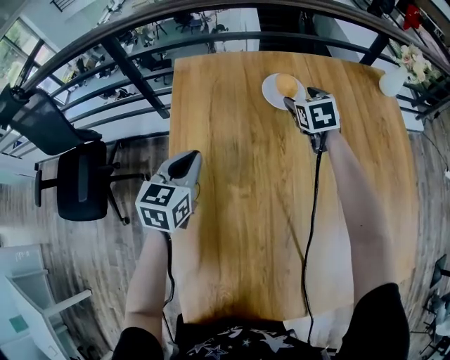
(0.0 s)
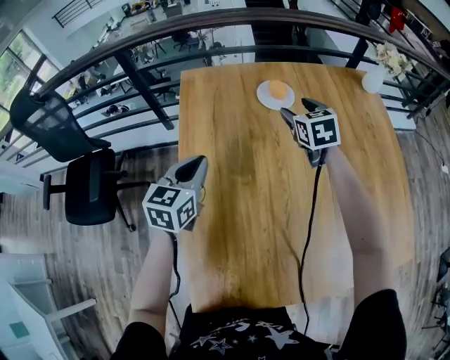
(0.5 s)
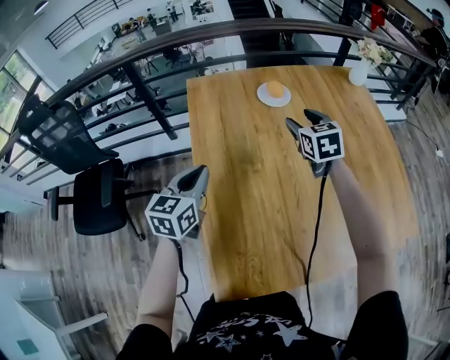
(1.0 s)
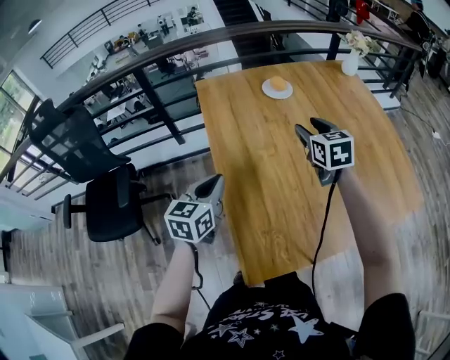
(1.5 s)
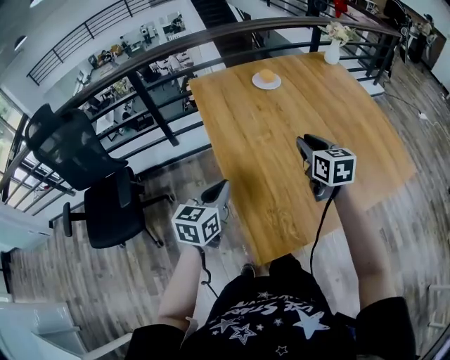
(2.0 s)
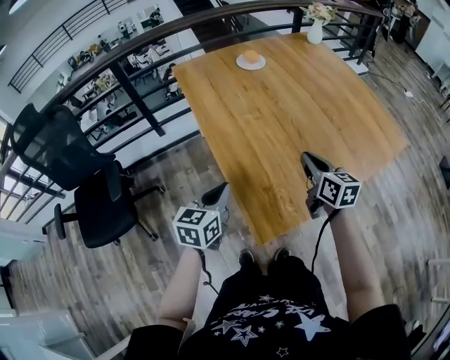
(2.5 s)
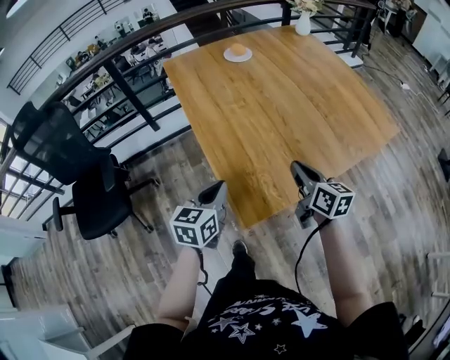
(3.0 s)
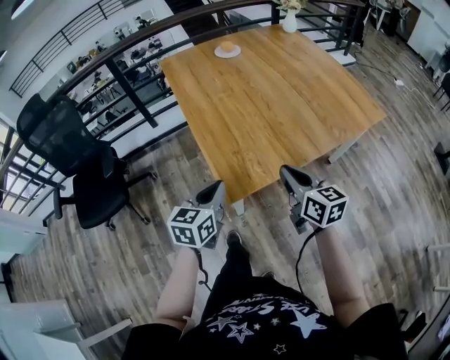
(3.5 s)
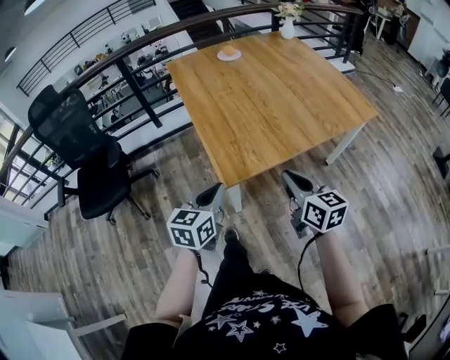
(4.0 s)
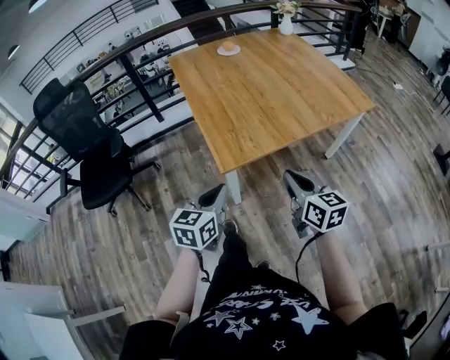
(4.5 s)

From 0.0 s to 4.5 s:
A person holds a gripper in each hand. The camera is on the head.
From 0.0 s to 2.0 s: The two grippers go about 40 cm backward. The right gripper rotates roughly 30 degrees, and closes up.
From 2.0 s to 4.5 s: Both grippers travel together backward and to the right, about 40 cm.

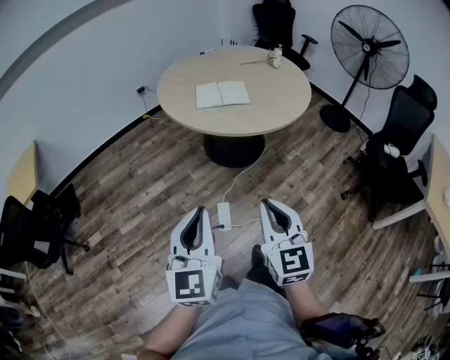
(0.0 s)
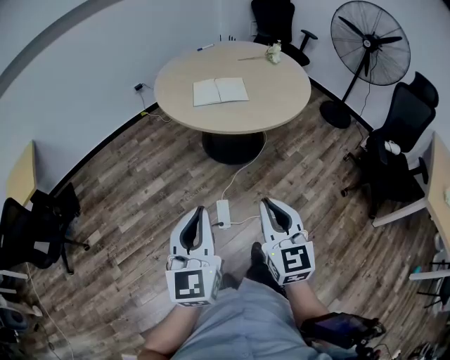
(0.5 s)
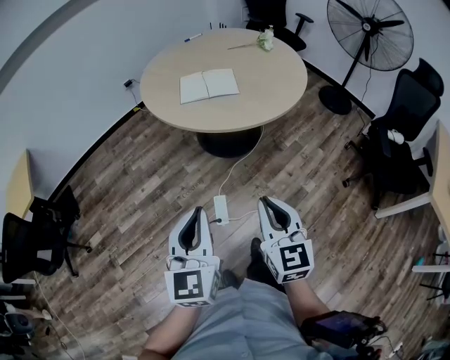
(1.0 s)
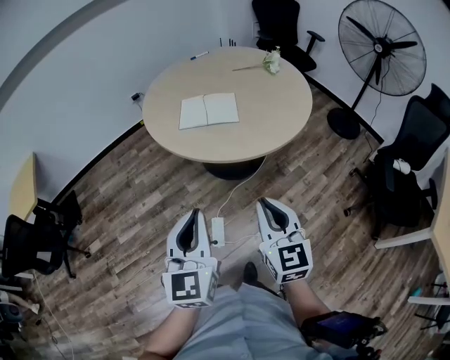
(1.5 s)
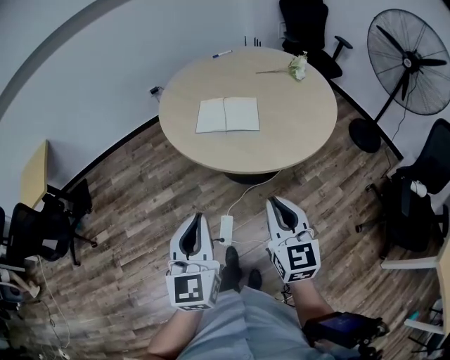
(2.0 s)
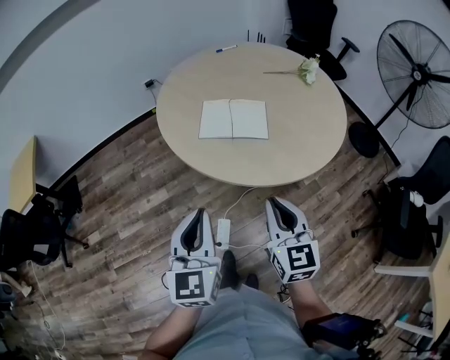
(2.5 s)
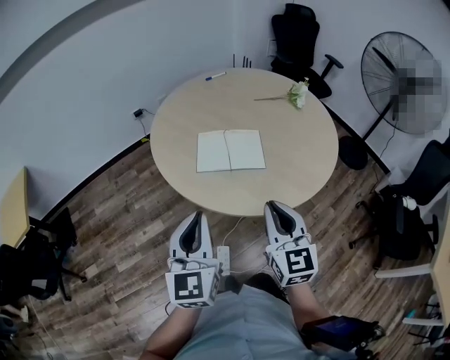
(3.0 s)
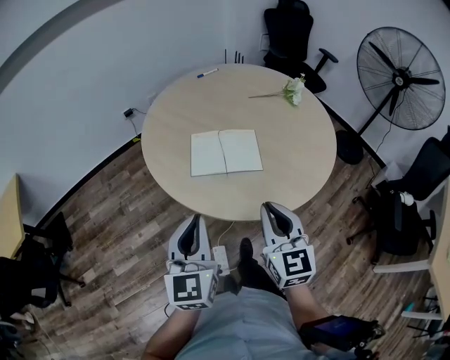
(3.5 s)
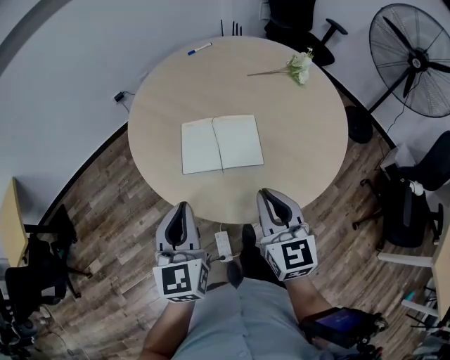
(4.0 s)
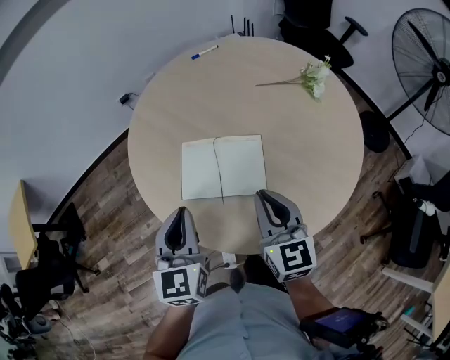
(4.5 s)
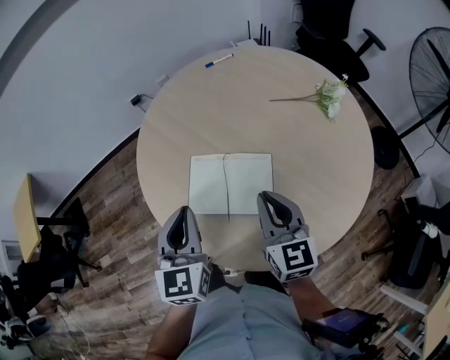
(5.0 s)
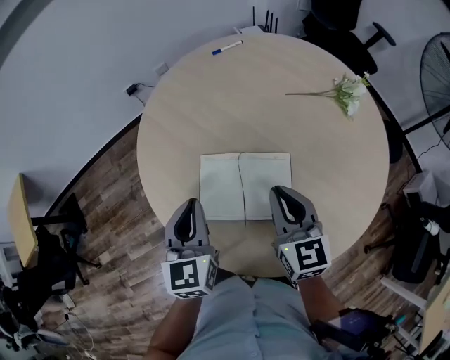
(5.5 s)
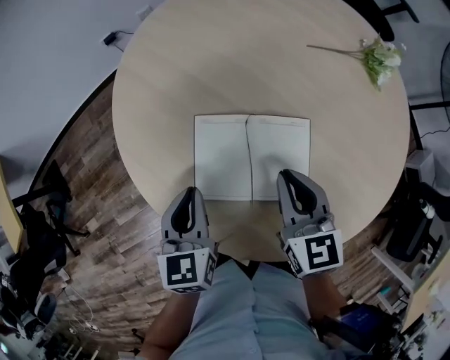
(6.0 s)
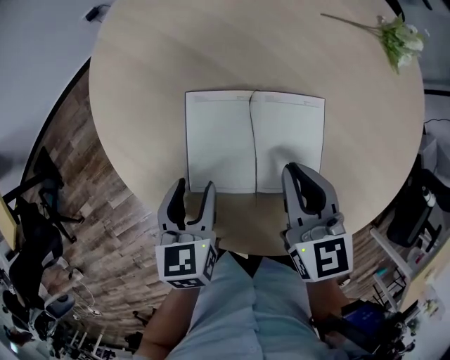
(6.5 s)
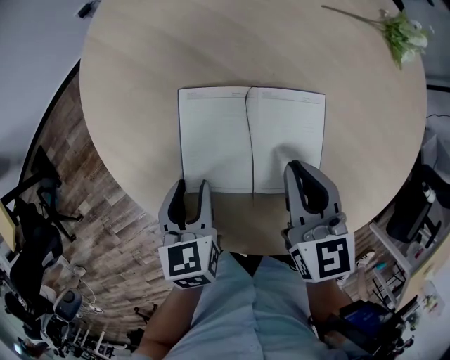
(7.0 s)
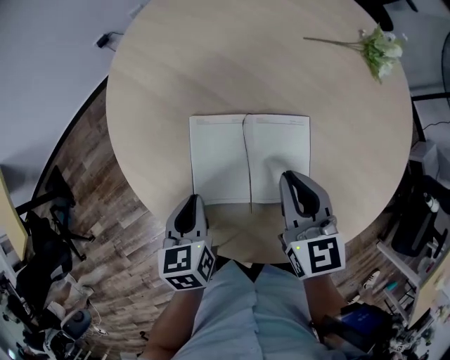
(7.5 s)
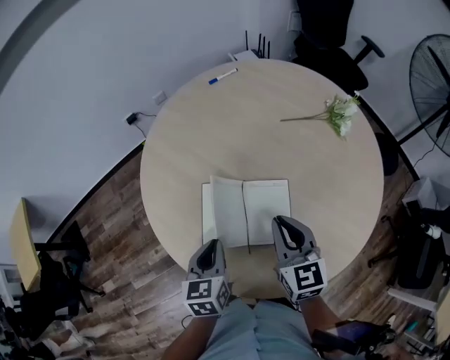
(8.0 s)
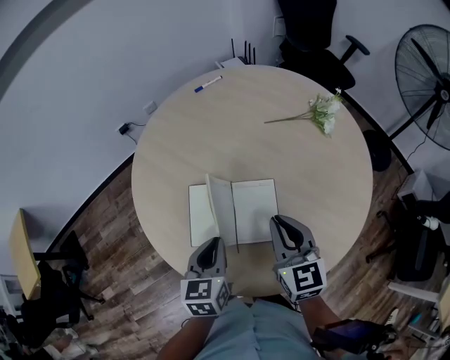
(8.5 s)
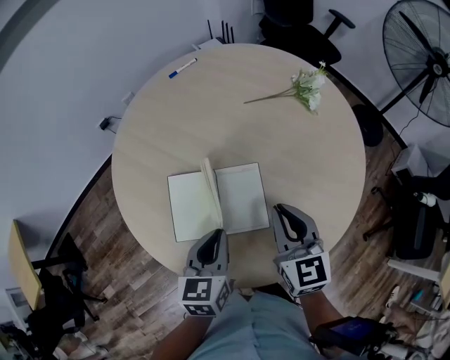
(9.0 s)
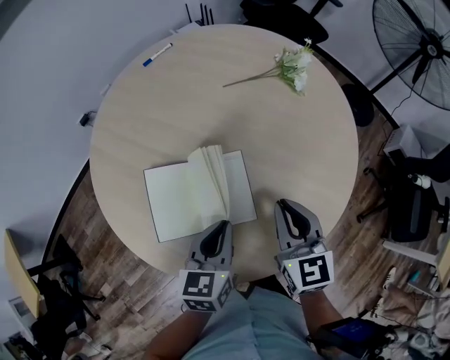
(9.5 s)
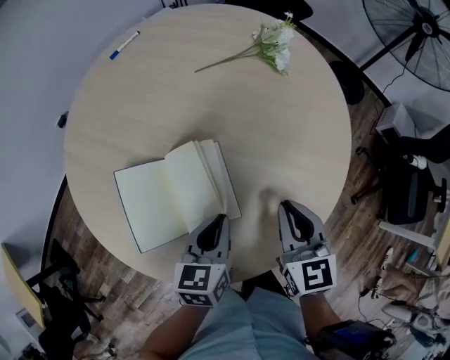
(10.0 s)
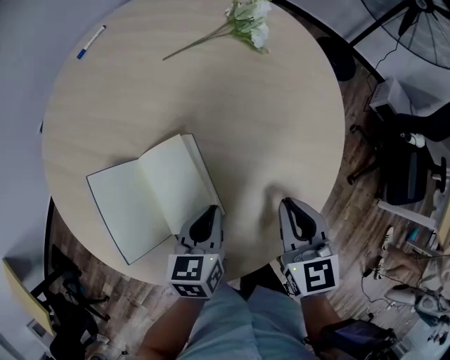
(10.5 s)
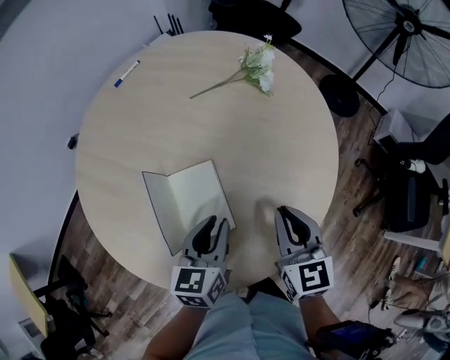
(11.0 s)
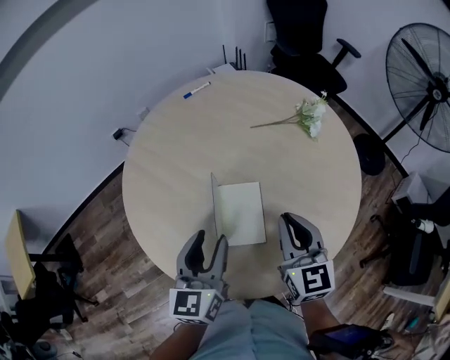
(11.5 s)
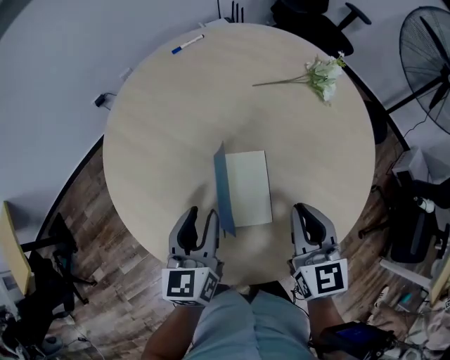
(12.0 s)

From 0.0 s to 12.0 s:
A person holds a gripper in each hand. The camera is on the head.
From 0.0 s to 2.0 s: The grippers both shift forward and to the right by approximately 25 cm.
From 2.0 s to 4.0 s: The two grippers go roughly 30 cm forward.
From 4.0 s to 6.0 s: Both grippers travel together forward and downward, some 30 cm. The left gripper rotates roughly 20 degrees.
From 6.0 s to 8.0 s: The left gripper heads to the right, covering some 5 cm, travels downward and back again, about 10 cm each way, and opens, then closes again. Meanwhile the right gripper heads upward, covering some 5 cm.
From 8.0 s to 10.0 s: The grippers both shift to the right by some 20 cm. The right gripper rotates about 20 degrees. Meanwhile the left gripper changes its angle by some 30 degrees.
From 10.0 s to 12.0 s: The left gripper moves up and down over some 20 cm, changing direction 2 times, rotates roughly 30 degrees, and opens. Meanwhile the right gripper goes about 10 cm to the left and upward.

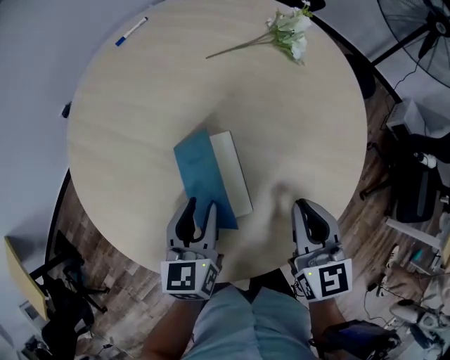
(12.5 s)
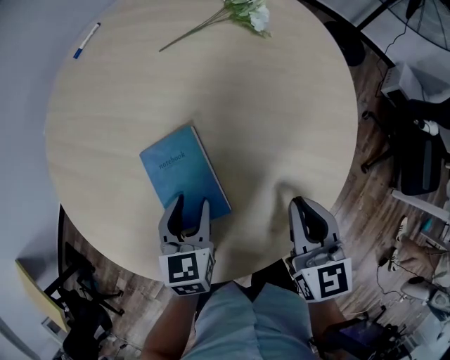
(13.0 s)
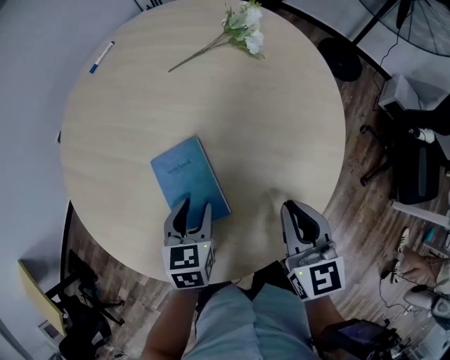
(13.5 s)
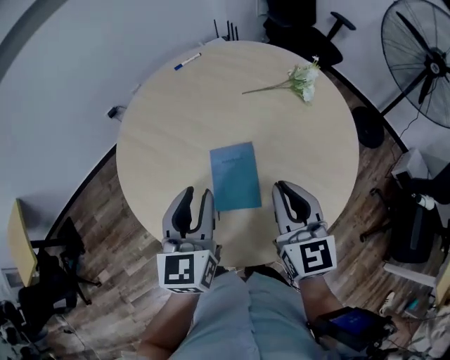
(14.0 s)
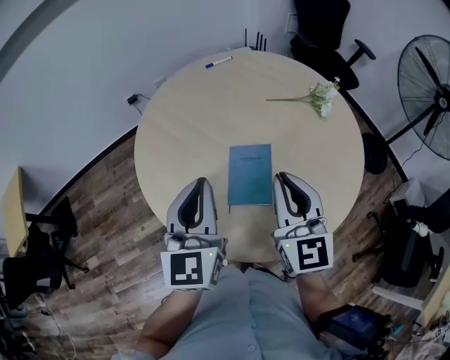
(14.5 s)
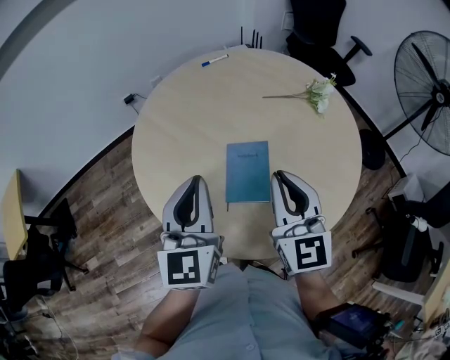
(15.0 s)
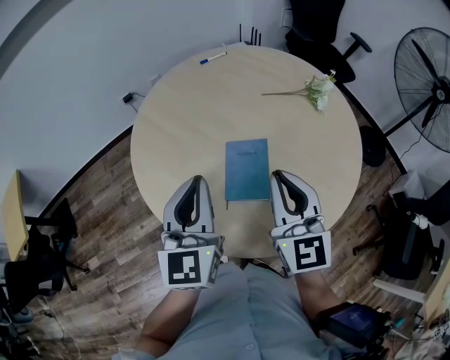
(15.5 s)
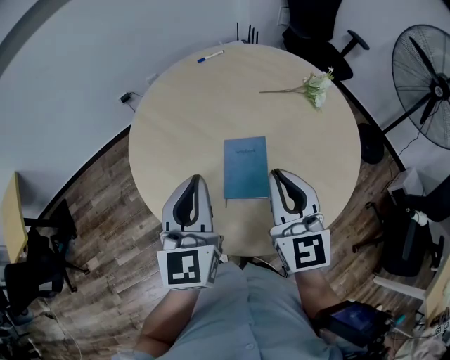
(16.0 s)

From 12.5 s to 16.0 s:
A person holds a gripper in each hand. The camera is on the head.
From 12.5 s to 14.5 s: The right gripper travels upward and to the left by some 20 cm, and rotates roughly 30 degrees; the left gripper moves upward and backward, some 25 cm, rotates approximately 30 degrees, and closes.
From 14.5 s to 16.0 s: The two grippers keep their place.

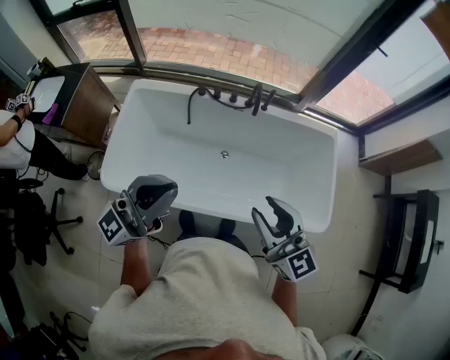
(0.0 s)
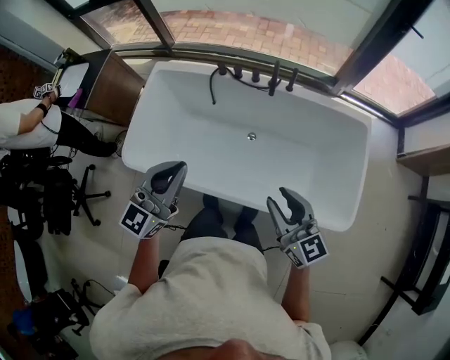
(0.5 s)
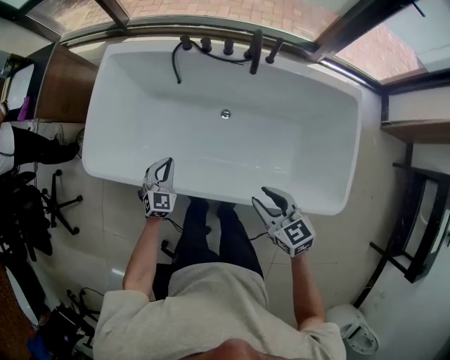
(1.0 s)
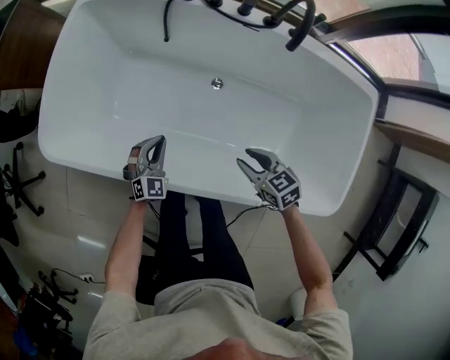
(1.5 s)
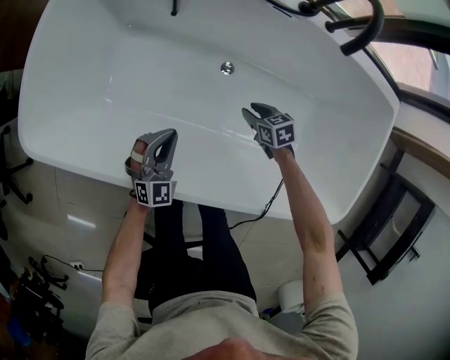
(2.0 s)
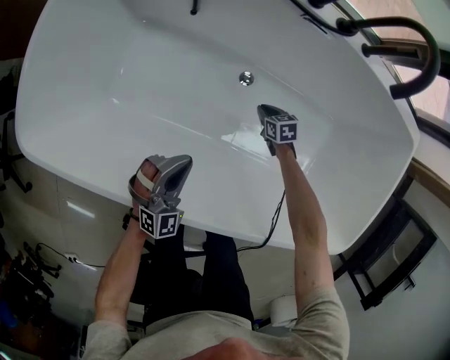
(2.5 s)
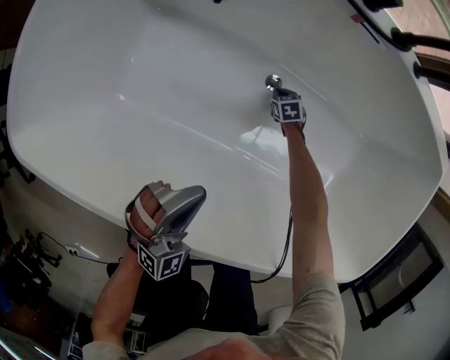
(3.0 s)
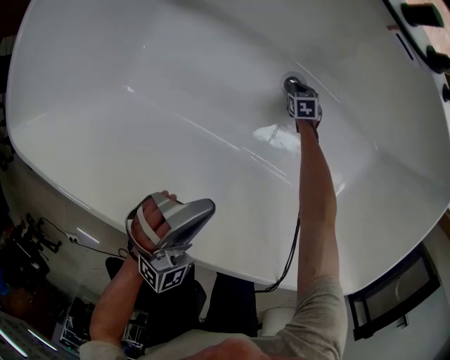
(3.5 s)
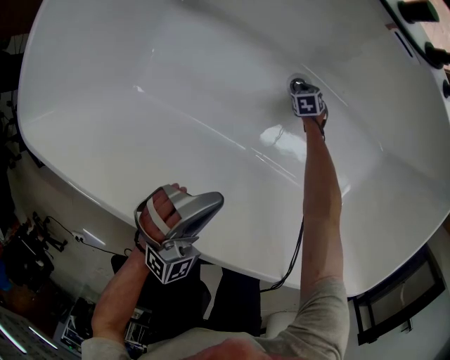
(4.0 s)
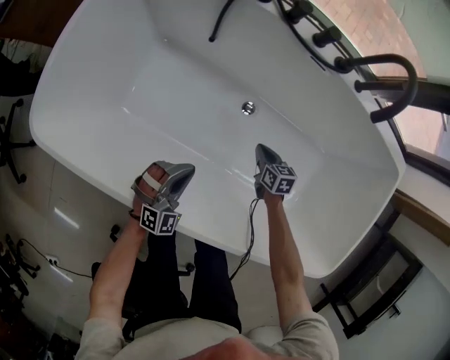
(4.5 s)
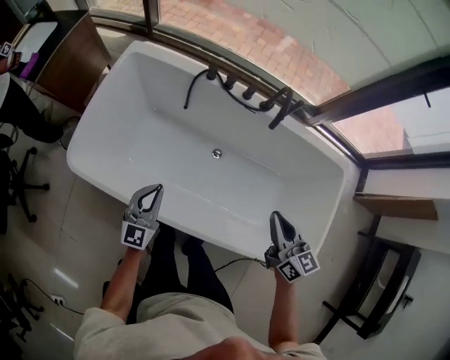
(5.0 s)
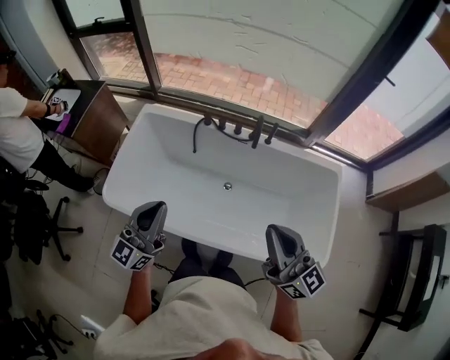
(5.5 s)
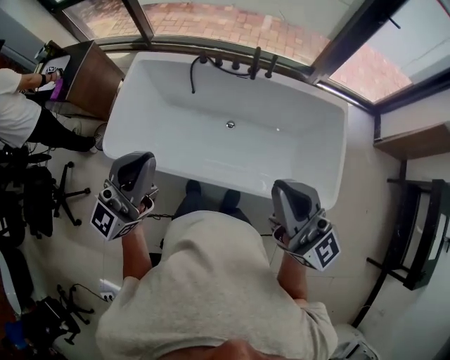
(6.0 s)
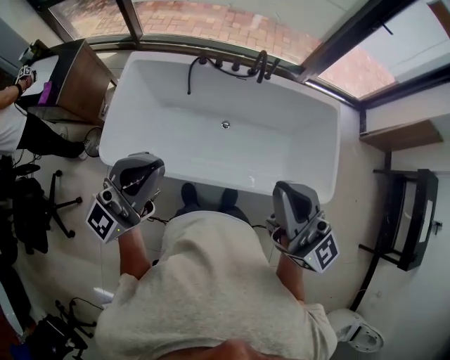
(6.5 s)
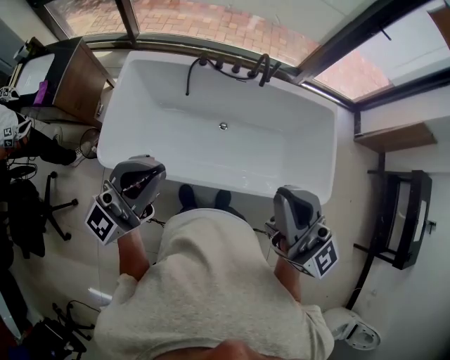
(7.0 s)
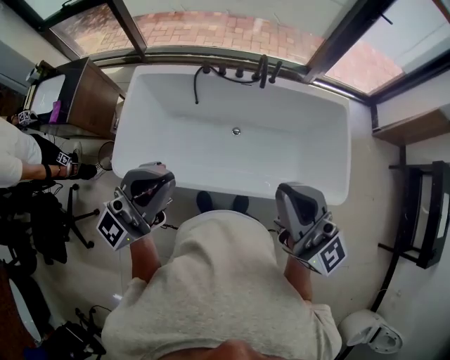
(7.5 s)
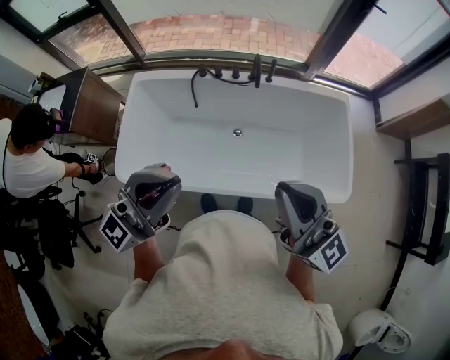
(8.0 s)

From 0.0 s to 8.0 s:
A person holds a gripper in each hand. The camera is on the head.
From 0.0 s to 2.0 s: The grippers both shift downward by roughly 70 cm. The right gripper angles its fingers downward, by some 60 degrees, while the left gripper tips its fingers downward by roughly 50 degrees.
From 2.0 s to 4.0 s: The right gripper is displaced downward and forward by approximately 35 cm, swivels about 20 degrees, and closes.
From 4.0 s to 6.0 s: The right gripper is displaced upward by about 1 m, and points its fingers about 90 degrees further upward; the left gripper heads upward, covering roughly 60 cm, and tilts its fingers roughly 50 degrees upward.
From 6.0 s to 8.0 s: The left gripper moves roughly 10 cm to the left and comes back, and rotates some 20 degrees; the right gripper shifts approximately 5 cm to the left.
